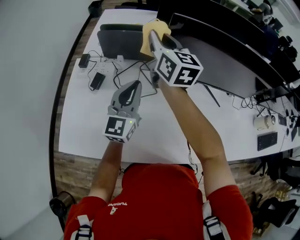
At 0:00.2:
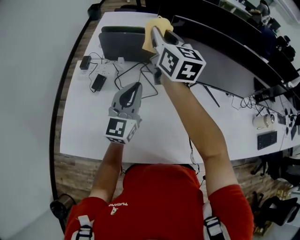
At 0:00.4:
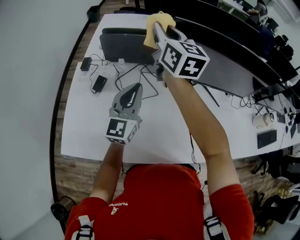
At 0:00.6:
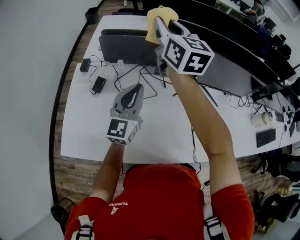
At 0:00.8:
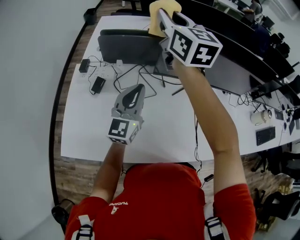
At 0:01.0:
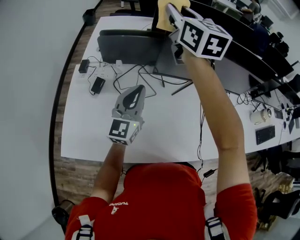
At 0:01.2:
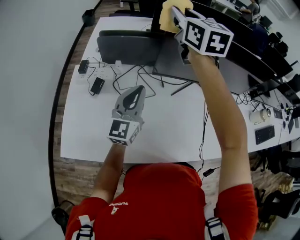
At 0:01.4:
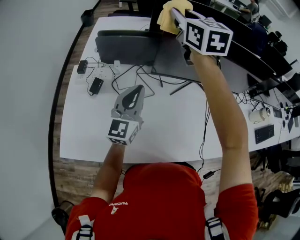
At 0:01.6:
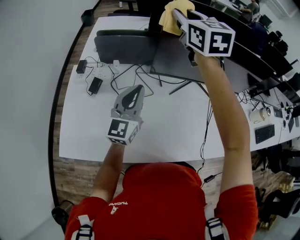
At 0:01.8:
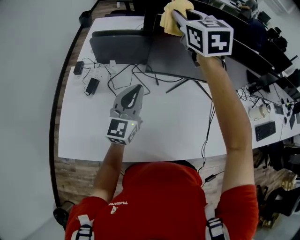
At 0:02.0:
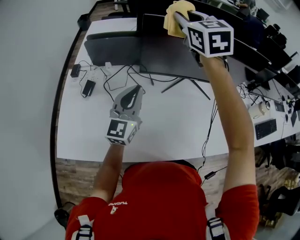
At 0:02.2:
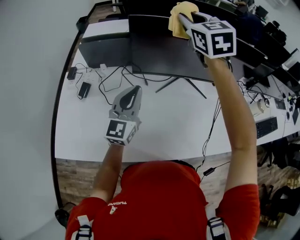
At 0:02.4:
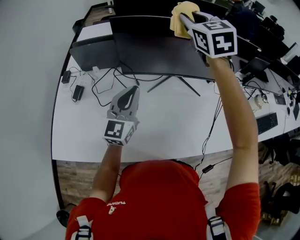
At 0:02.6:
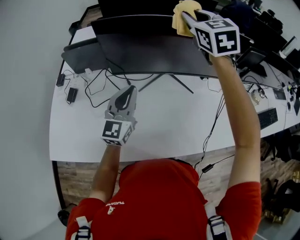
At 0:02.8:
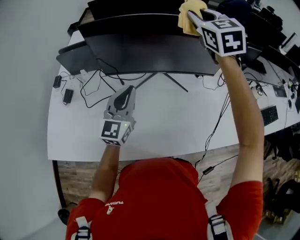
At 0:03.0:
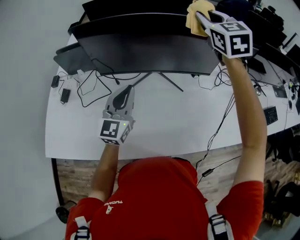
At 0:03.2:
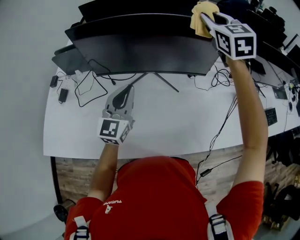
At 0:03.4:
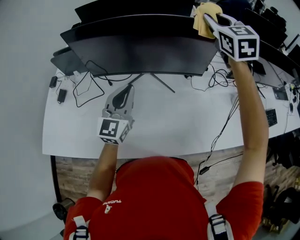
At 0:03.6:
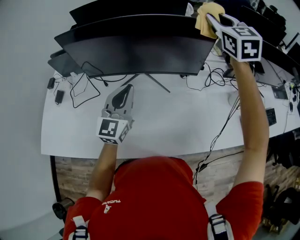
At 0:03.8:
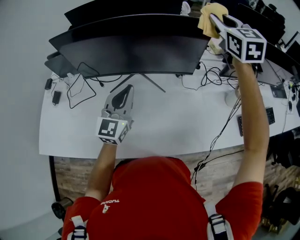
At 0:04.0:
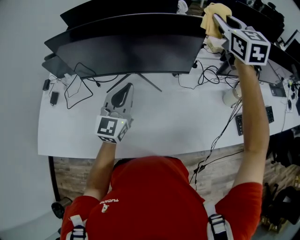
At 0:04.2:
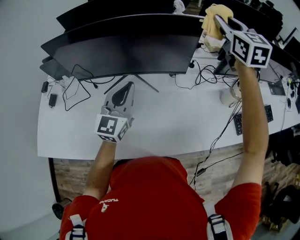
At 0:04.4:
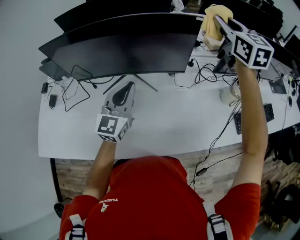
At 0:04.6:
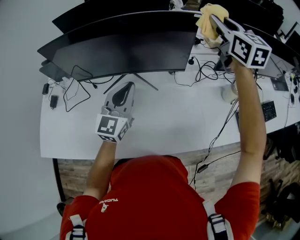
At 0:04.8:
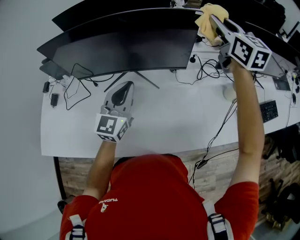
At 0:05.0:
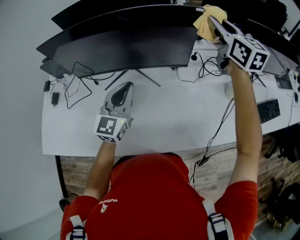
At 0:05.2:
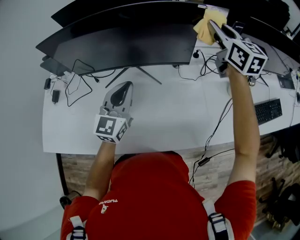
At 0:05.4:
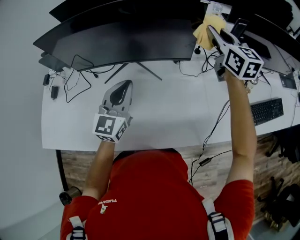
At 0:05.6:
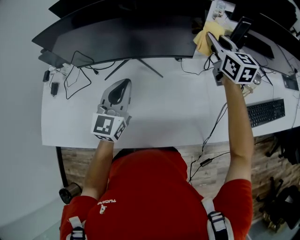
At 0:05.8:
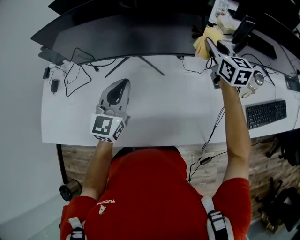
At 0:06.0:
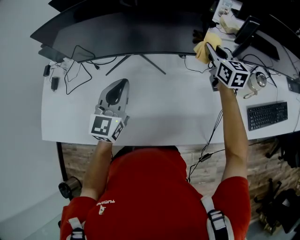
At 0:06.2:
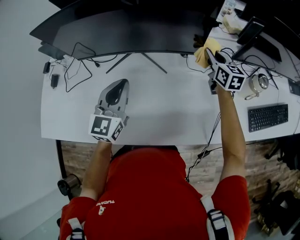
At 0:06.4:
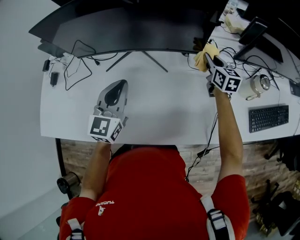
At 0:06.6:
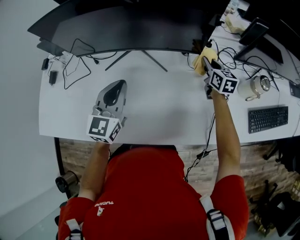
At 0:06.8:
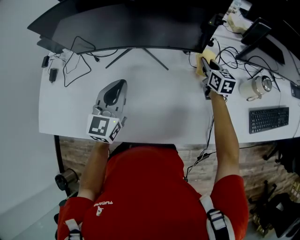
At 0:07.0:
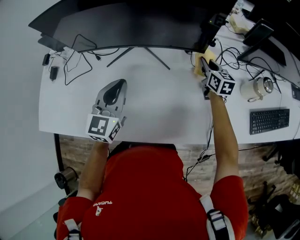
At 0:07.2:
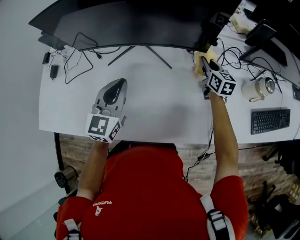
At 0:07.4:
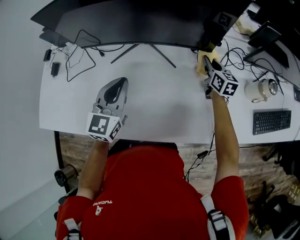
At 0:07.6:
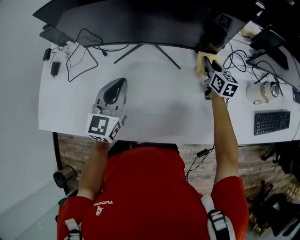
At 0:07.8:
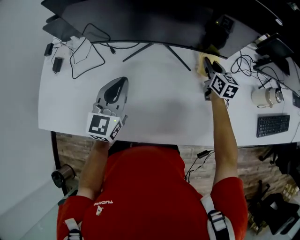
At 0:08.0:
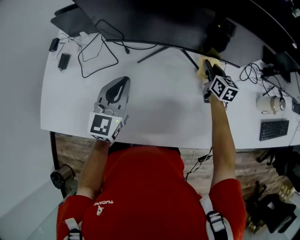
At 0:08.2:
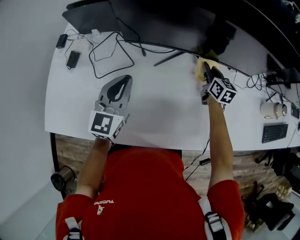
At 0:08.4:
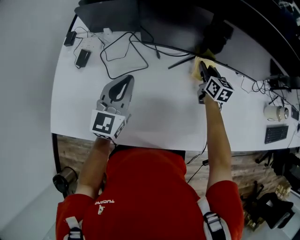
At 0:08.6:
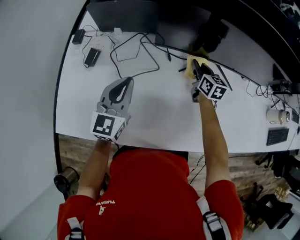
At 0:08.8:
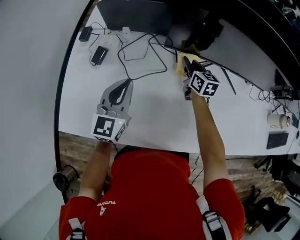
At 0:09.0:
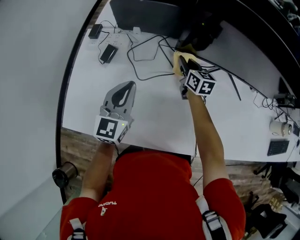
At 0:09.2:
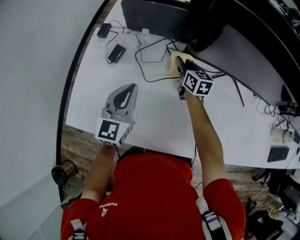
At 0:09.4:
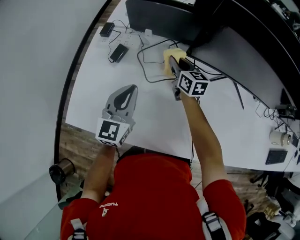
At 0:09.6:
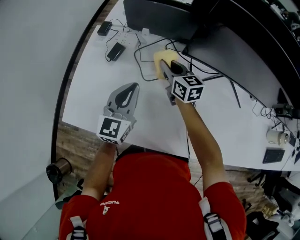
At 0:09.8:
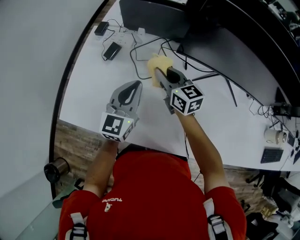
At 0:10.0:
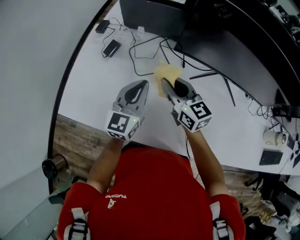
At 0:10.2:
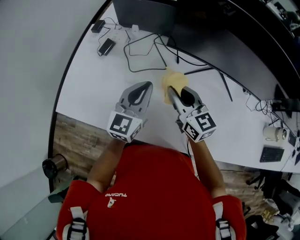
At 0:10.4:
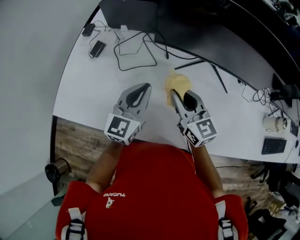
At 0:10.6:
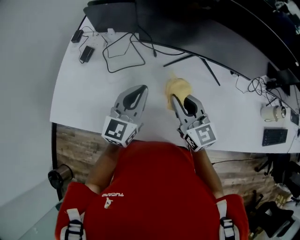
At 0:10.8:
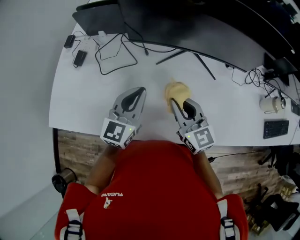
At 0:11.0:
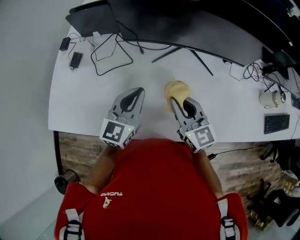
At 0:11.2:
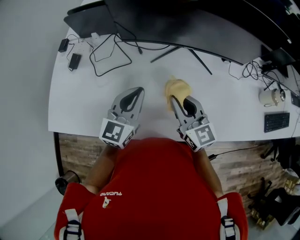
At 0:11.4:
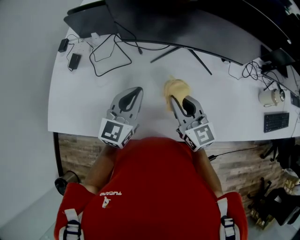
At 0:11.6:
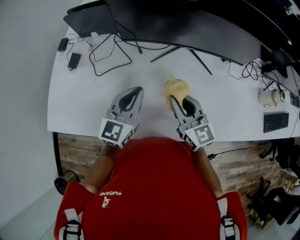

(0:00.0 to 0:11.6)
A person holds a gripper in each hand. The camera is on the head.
0:00.0 - 0:01.4: The right gripper goes about 10 cm upward and to the right, and changes its angle by roughly 20 degrees.
0:01.4 - 0:02.8: The left gripper travels to the right by roughly 25 cm; the right gripper heads to the right, covering some 35 cm.
0:02.8 - 0:04.4: Both grippers move to the right, roughly 25 cm.
0:04.4 - 0:05.8: The right gripper travels downward by about 20 cm. The left gripper shifts by roughly 5 cm.
0:05.8 - 0:07.2: The left gripper moves roughly 5 cm; the right gripper goes roughly 20 cm downward.
0:07.2 - 0:08.8: The pair of grippers is taken to the left, approximately 50 cm.
0:08.8 - 0:10.2: The right gripper is displaced backward, upward and to the left by some 20 cm, and swivels some 30 degrees. Meanwhile the left gripper moves to the right and backward, some 10 cm.
0:10.2 - 0:11.6: The left gripper shifts roughly 10 cm to the right. The right gripper shifts roughly 15 cm to the right and backward.

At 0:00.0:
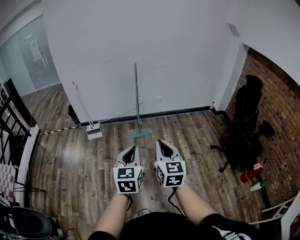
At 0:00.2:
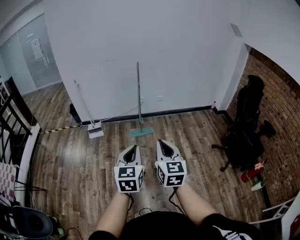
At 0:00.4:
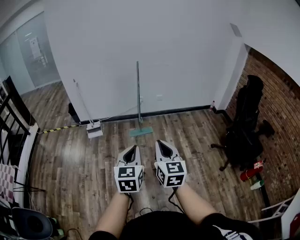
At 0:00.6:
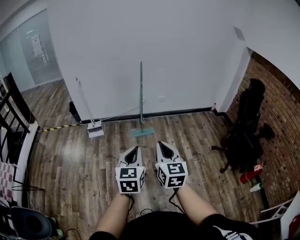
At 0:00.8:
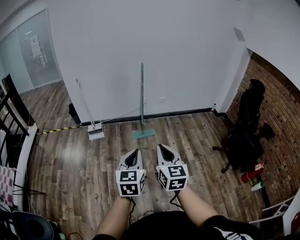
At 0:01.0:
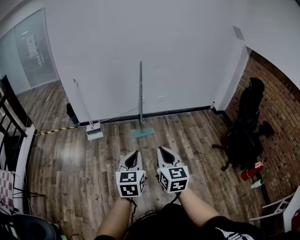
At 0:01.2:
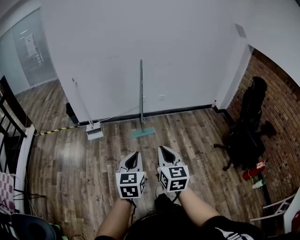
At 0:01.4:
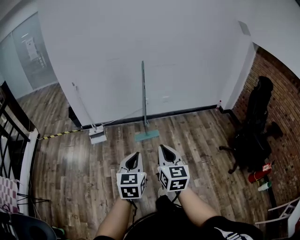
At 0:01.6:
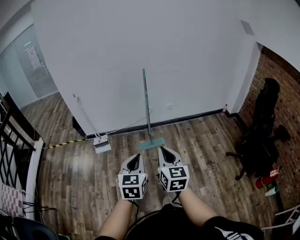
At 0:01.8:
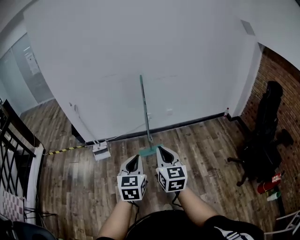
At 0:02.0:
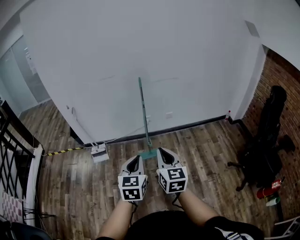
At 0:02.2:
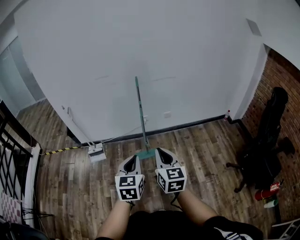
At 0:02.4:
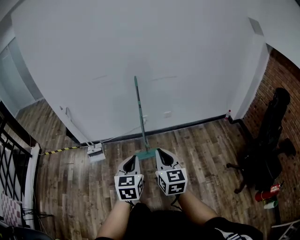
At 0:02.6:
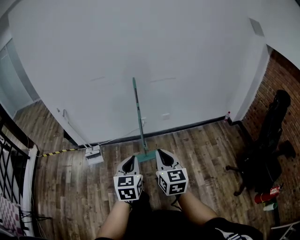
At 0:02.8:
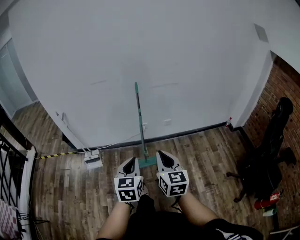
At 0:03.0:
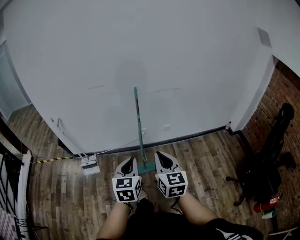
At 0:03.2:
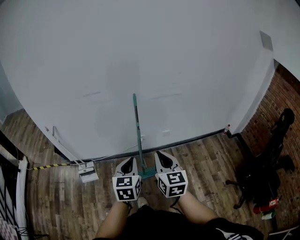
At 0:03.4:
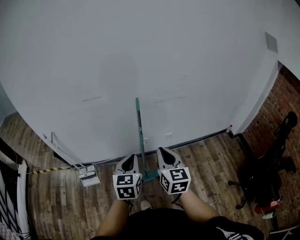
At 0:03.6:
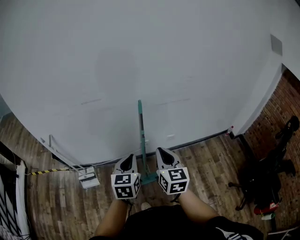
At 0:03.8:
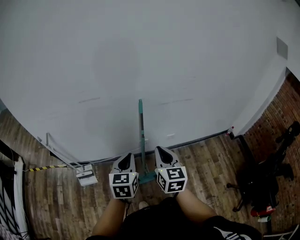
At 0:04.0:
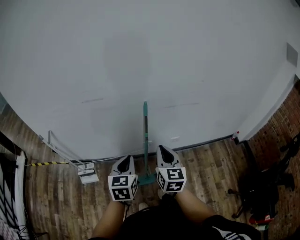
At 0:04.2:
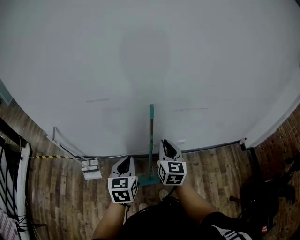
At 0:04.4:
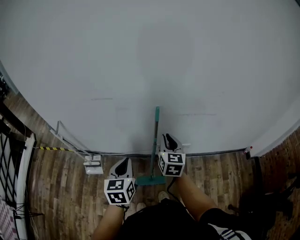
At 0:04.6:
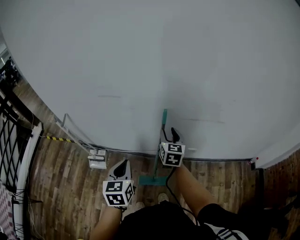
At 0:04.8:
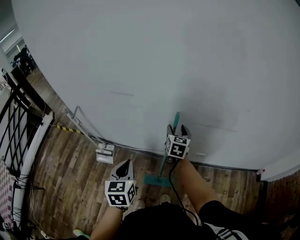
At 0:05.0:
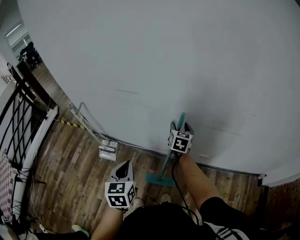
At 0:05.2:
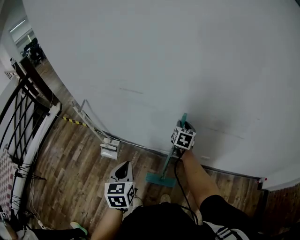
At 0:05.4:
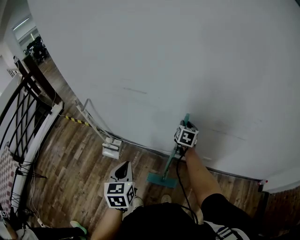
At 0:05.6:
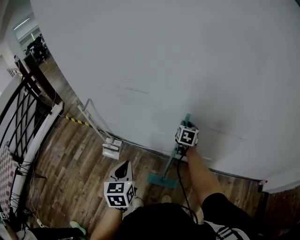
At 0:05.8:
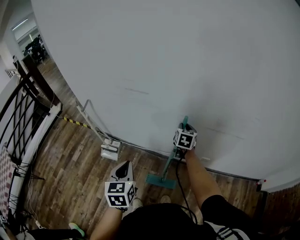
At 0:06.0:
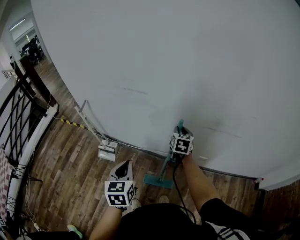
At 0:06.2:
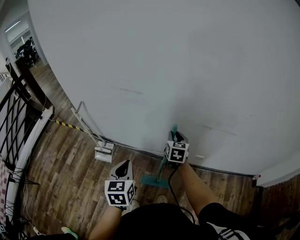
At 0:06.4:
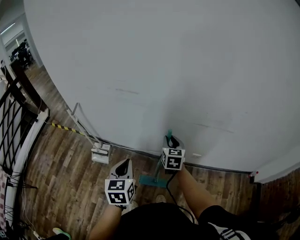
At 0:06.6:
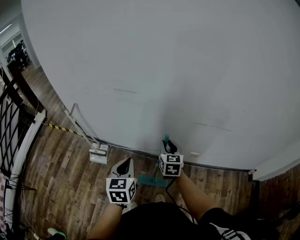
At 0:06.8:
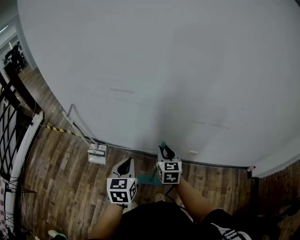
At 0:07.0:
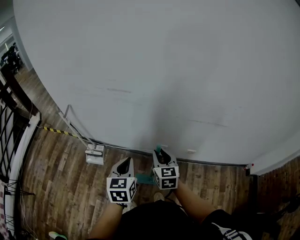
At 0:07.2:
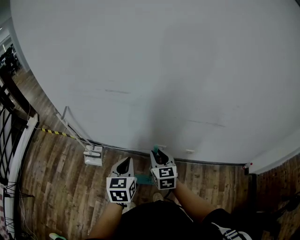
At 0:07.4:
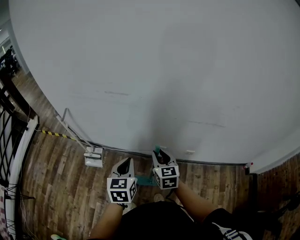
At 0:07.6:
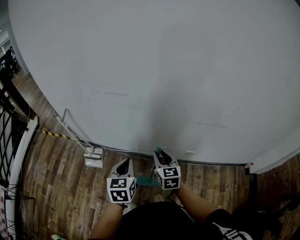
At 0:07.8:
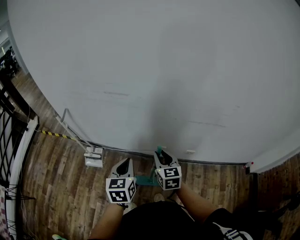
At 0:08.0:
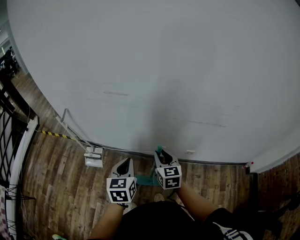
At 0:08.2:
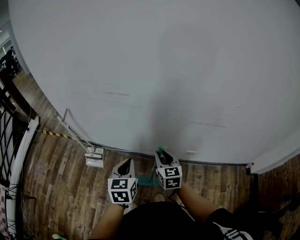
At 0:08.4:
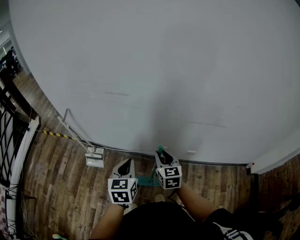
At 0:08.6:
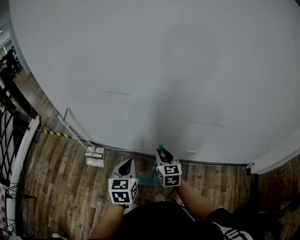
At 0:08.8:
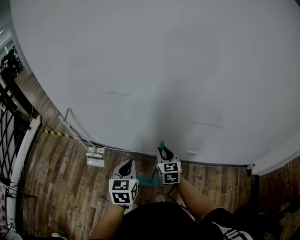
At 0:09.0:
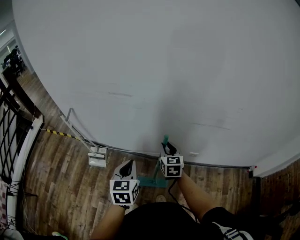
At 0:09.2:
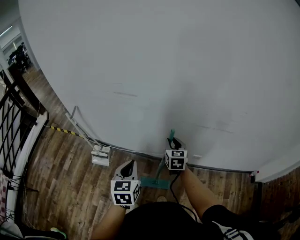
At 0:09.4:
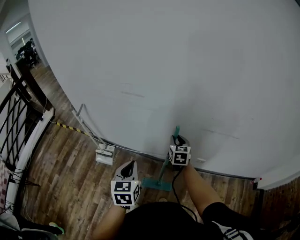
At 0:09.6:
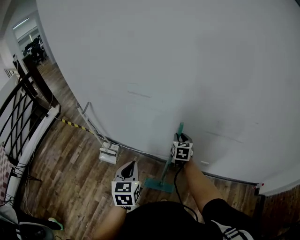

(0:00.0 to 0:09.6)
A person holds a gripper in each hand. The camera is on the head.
0:00.0 - 0:01.6: The right gripper goes about 20 cm forward and to the left; the left gripper shifts roughly 20 cm forward.
0:01.6 - 0:03.2: The two grippers travel together, forward, about 40 cm.
0:03.2 - 0:04.8: The left gripper is displaced forward and to the left by approximately 20 cm, and rotates roughly 30 degrees, while the right gripper moves forward, about 40 cm, and opens up.
0:04.8 - 0:06.4: The right gripper travels backward and to the left by approximately 10 cm, and closes its fingers.
0:06.4 - 0:08.0: The right gripper shifts approximately 10 cm backward.
0:08.0 - 0:09.6: The right gripper is displaced forward by roughly 15 cm.

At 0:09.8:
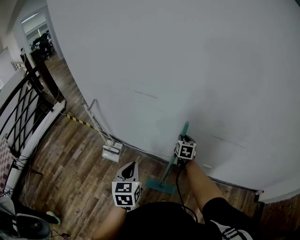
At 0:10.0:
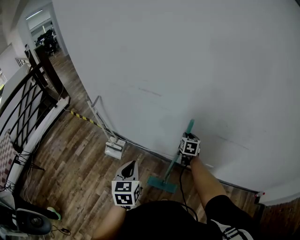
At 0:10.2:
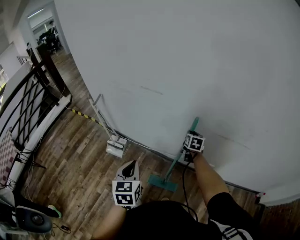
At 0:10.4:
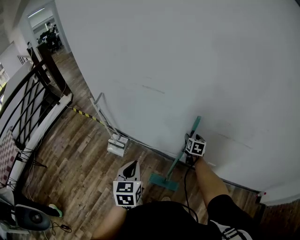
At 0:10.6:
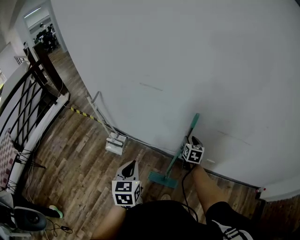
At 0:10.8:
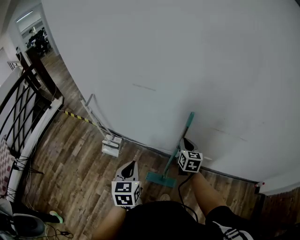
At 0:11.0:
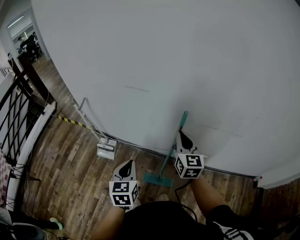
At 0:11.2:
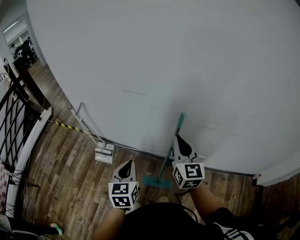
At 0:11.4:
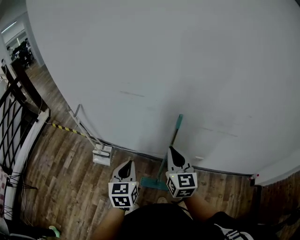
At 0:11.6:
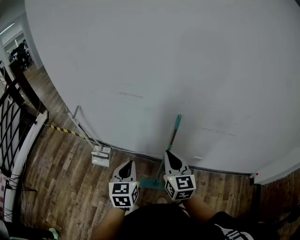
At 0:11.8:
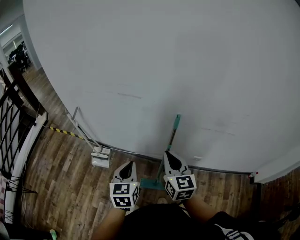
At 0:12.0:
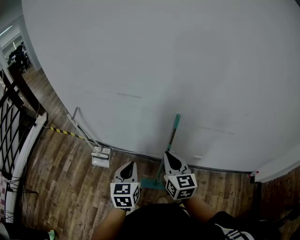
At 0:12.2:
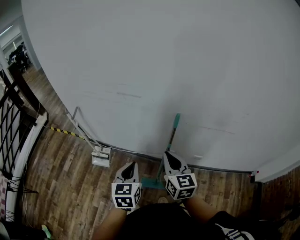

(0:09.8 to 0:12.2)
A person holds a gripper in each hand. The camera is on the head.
0:09.8 - 0:11.0: The right gripper shifts approximately 20 cm upward and backward, rotates some 20 degrees, and opens and closes again.
0:11.0 - 0:12.2: The right gripper shifts approximately 10 cm backward.
